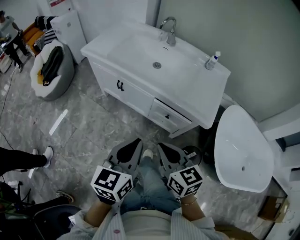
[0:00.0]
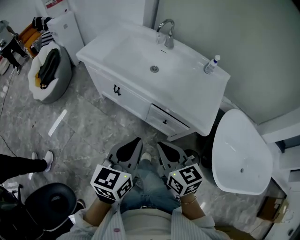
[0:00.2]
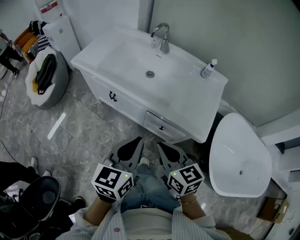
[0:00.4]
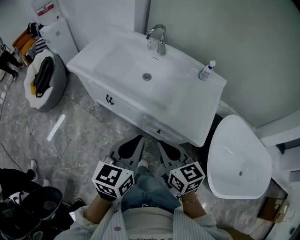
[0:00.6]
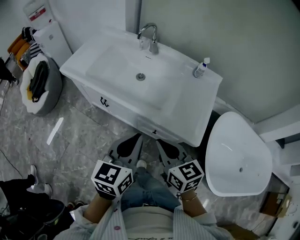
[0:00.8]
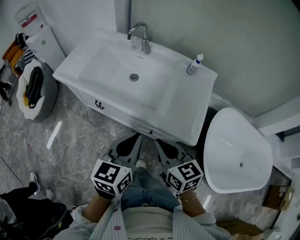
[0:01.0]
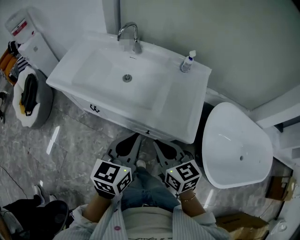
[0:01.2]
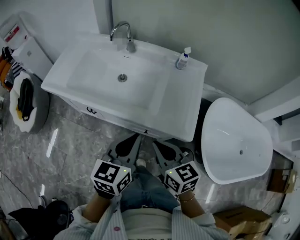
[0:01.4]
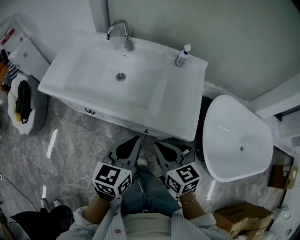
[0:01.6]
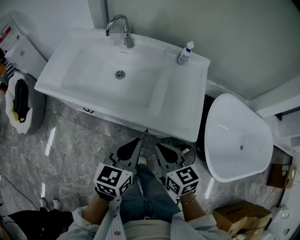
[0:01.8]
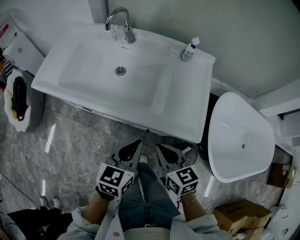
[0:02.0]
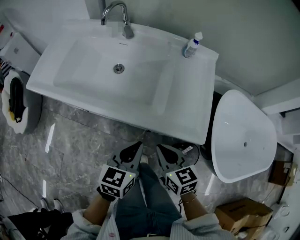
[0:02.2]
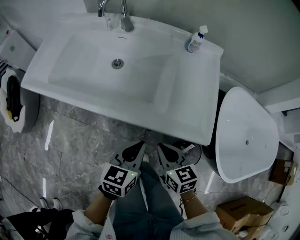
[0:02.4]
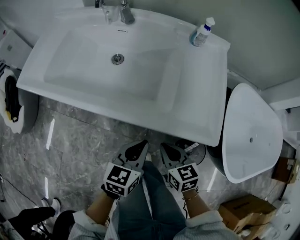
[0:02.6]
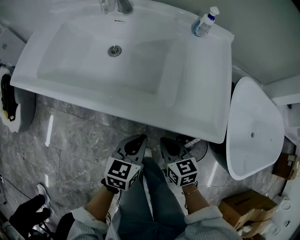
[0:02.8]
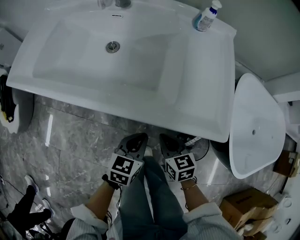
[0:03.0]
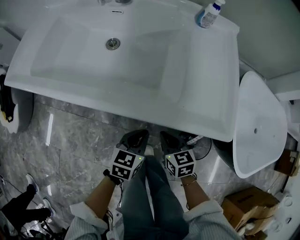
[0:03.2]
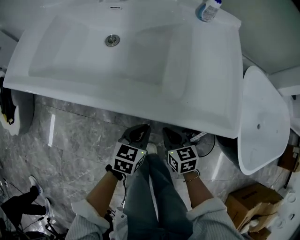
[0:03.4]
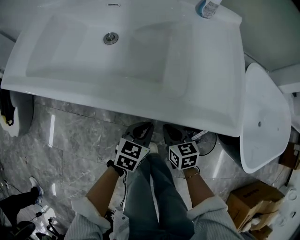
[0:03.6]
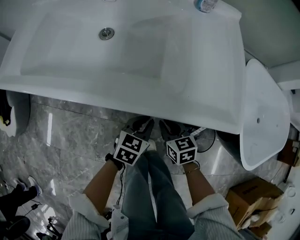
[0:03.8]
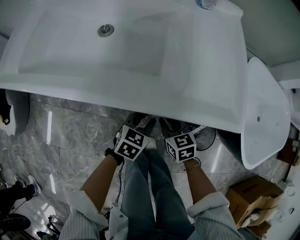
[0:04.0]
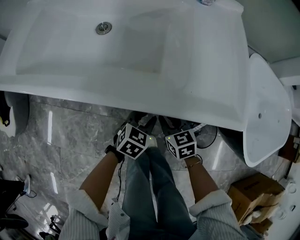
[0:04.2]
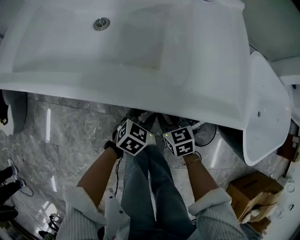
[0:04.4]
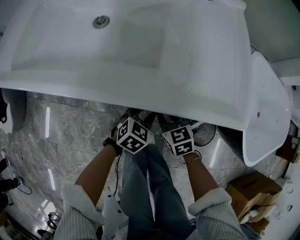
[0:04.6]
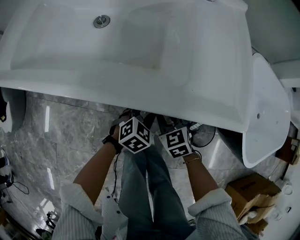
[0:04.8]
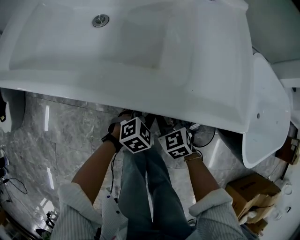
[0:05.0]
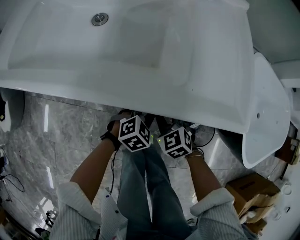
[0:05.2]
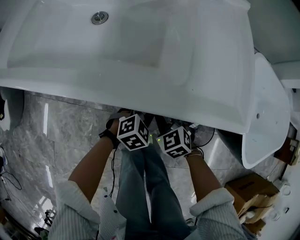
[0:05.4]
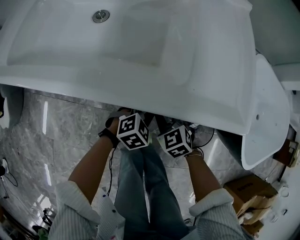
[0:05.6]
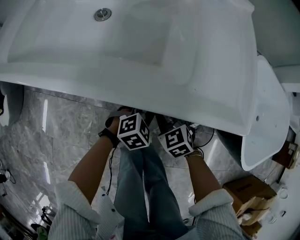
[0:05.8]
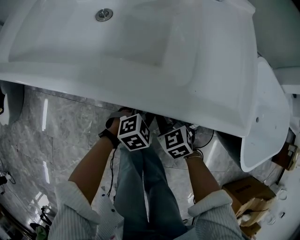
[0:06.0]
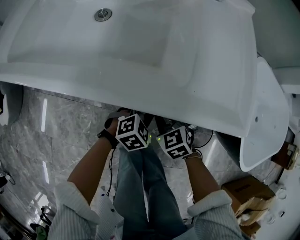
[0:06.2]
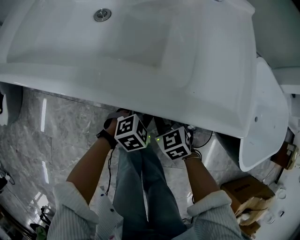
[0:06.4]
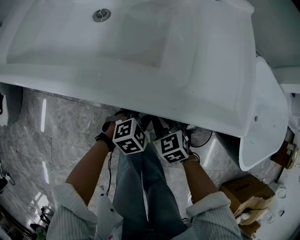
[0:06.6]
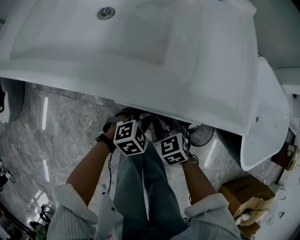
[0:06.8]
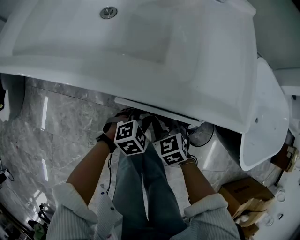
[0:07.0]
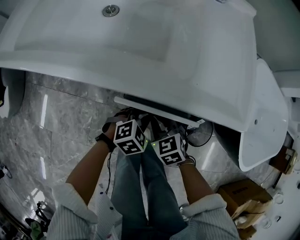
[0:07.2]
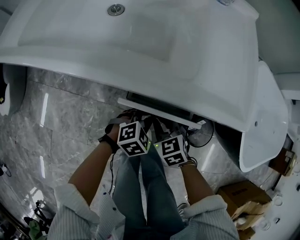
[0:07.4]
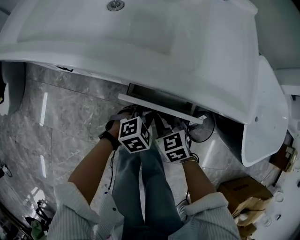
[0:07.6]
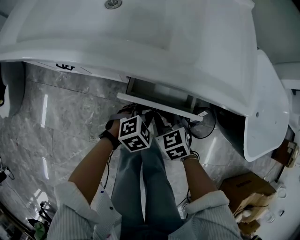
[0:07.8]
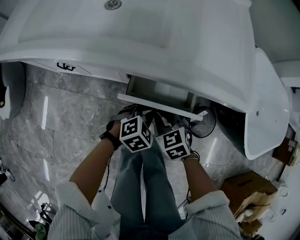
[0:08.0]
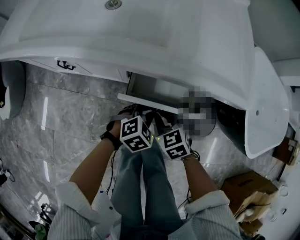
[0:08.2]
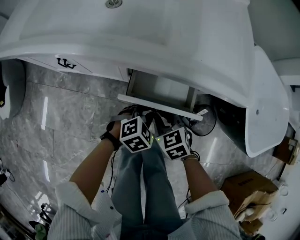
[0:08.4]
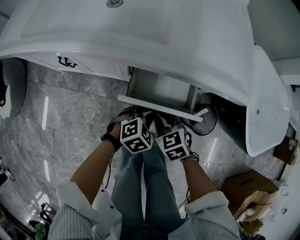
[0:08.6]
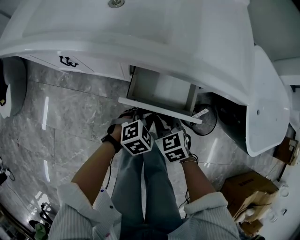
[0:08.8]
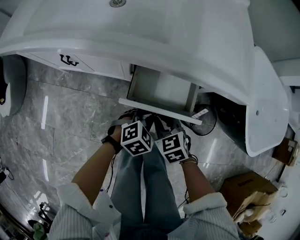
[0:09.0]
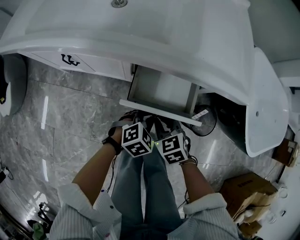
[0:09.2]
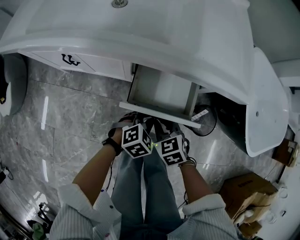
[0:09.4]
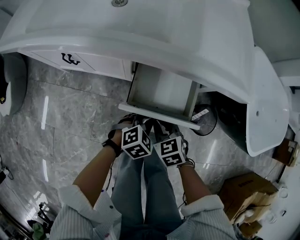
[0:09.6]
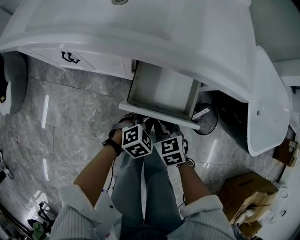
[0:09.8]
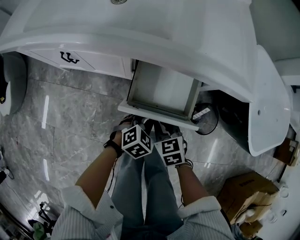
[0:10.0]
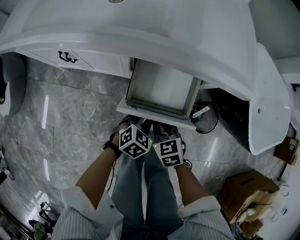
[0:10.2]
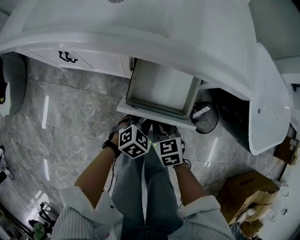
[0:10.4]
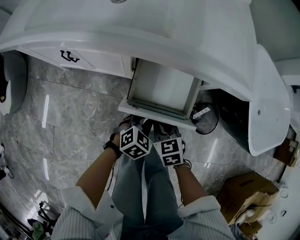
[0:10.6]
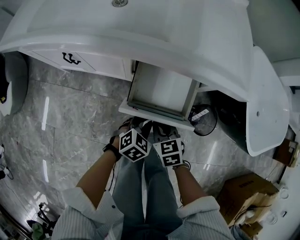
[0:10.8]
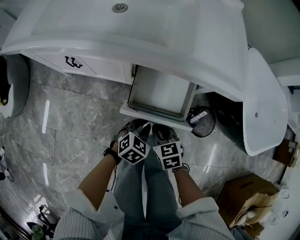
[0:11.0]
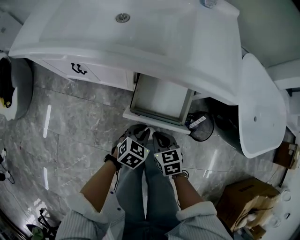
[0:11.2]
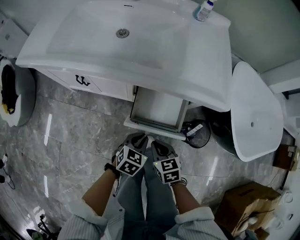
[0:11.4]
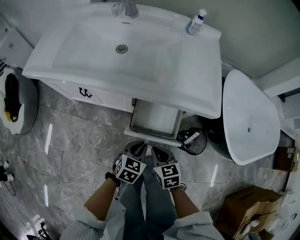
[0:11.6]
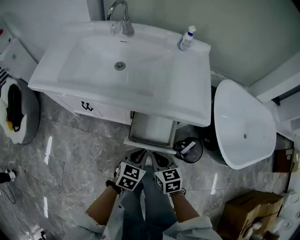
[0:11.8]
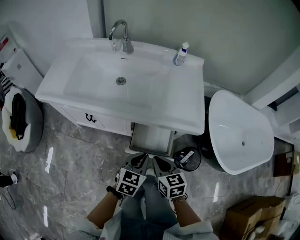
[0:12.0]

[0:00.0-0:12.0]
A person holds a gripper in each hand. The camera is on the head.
0:00.0 to 0:01.6: Both grippers travel together forward and to the right, roughly 20 cm.
0:01.6 to 0:03.0: Both grippers move downward, about 30 cm.
0:03.0 to 0:04.4: Both grippers move downward, about 10 cm. The left gripper changes its angle by about 30 degrees, and opens its fingers.
0:04.4 to 0:06.0: The right gripper rotates about 20 degrees. Meanwhile the left gripper changes its angle by about 20 degrees.
0:06.0 to 0:07.6: Both grippers travel together backward, roughly 5 cm.
0:07.6 to 0:09.0: The two grippers go approximately 5 cm backward.
0:09.0 to 0:10.4: The grippers stay close to where they were, moving slightly.
0:10.4 to 0:12.0: Both grippers move upward, about 25 cm. The left gripper swivels approximately 30 degrees.

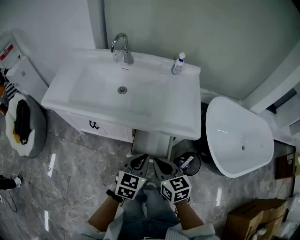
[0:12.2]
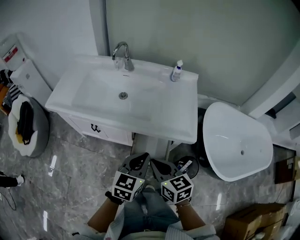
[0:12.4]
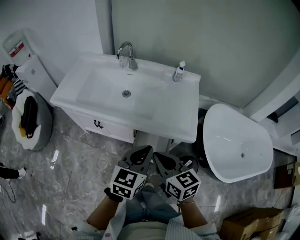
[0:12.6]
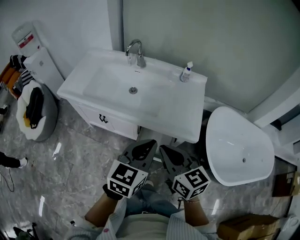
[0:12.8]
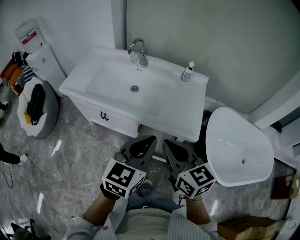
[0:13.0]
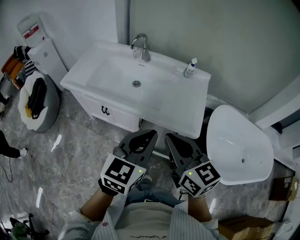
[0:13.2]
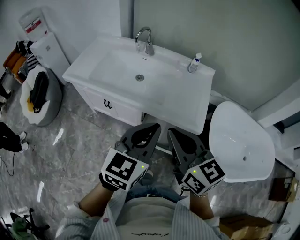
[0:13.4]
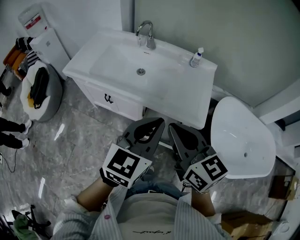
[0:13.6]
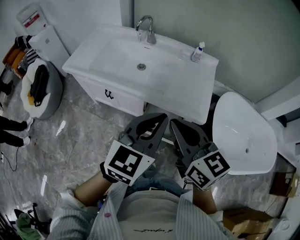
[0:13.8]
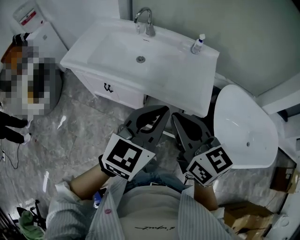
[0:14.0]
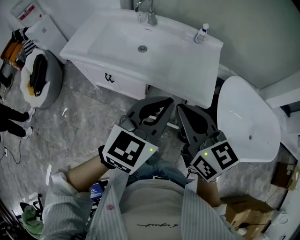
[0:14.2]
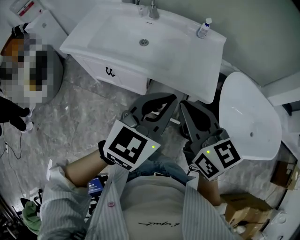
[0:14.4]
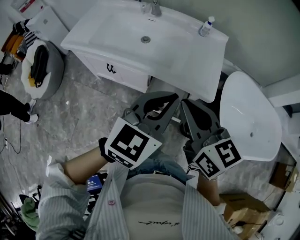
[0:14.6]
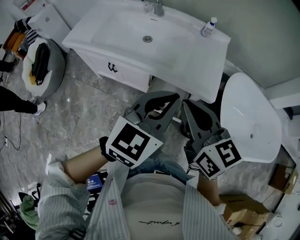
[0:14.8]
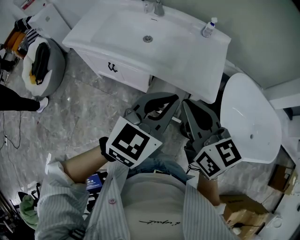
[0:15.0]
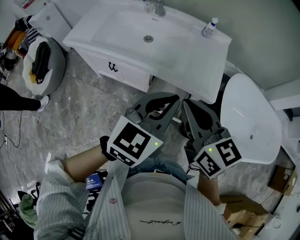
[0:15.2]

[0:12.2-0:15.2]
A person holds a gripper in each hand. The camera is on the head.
0:12.2 to 0:13.8: Both grippers travel together upward, about 25 cm. The right gripper rotates approximately 20 degrees.
0:13.8 to 0:15.2: There are only small adjustments of the grippers.

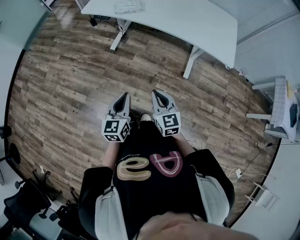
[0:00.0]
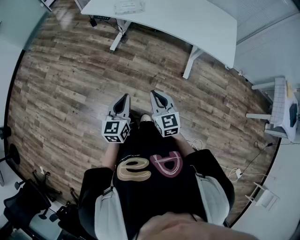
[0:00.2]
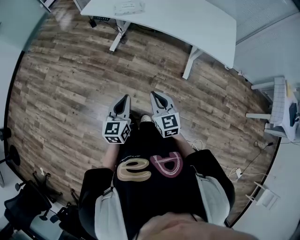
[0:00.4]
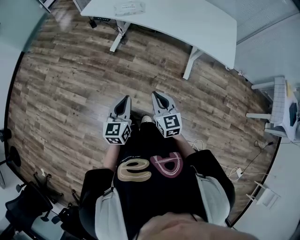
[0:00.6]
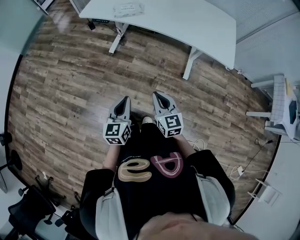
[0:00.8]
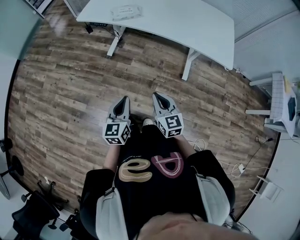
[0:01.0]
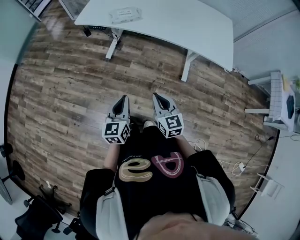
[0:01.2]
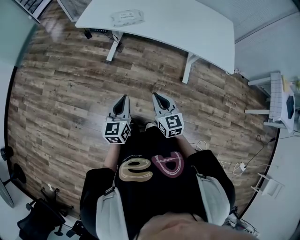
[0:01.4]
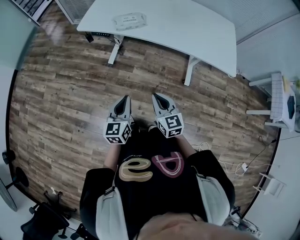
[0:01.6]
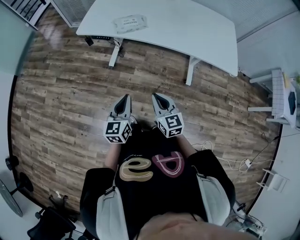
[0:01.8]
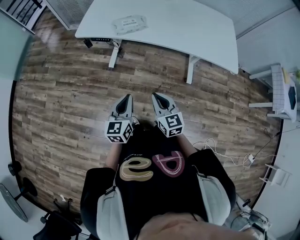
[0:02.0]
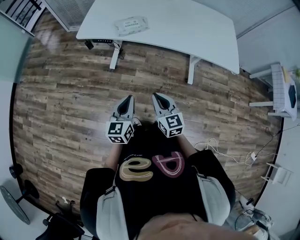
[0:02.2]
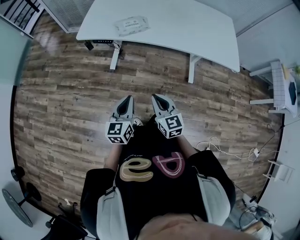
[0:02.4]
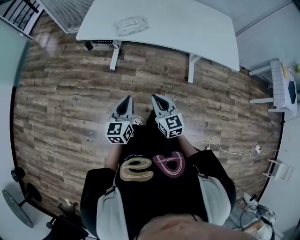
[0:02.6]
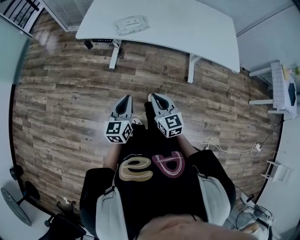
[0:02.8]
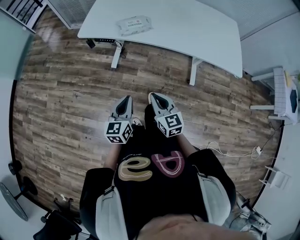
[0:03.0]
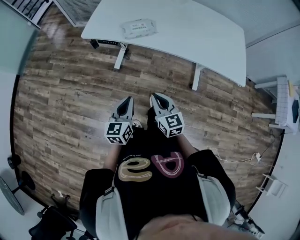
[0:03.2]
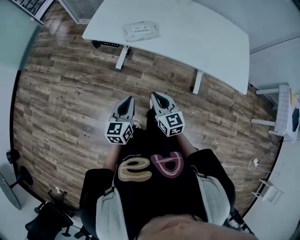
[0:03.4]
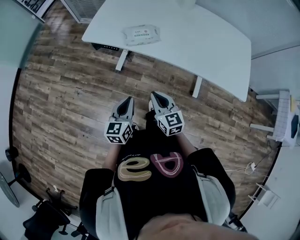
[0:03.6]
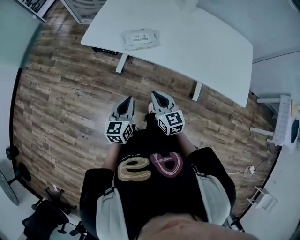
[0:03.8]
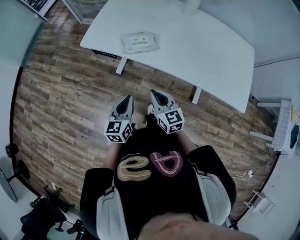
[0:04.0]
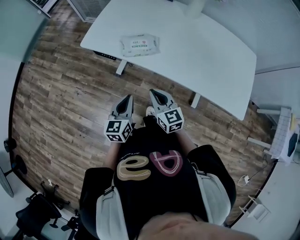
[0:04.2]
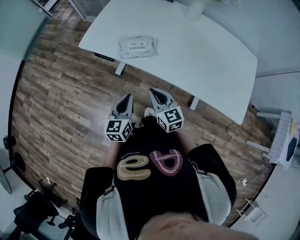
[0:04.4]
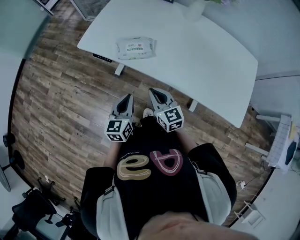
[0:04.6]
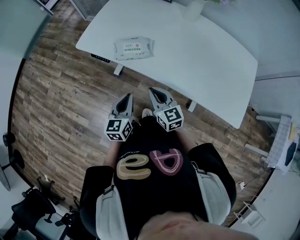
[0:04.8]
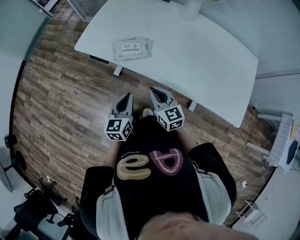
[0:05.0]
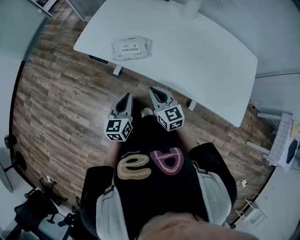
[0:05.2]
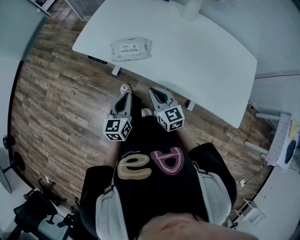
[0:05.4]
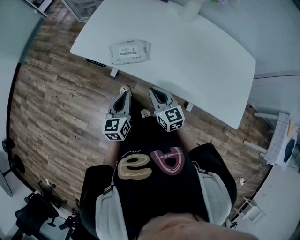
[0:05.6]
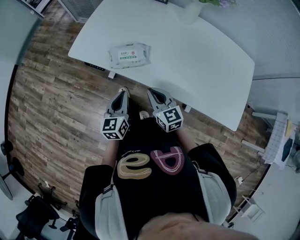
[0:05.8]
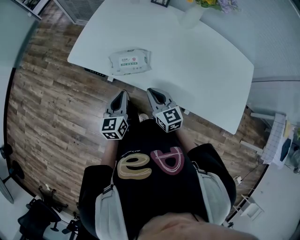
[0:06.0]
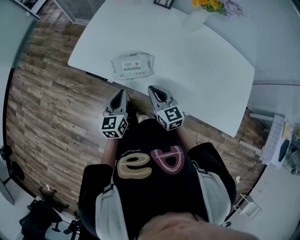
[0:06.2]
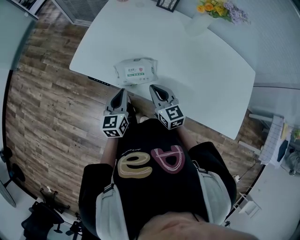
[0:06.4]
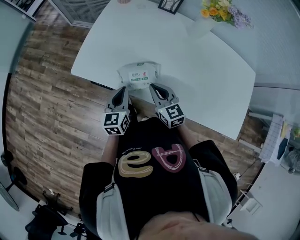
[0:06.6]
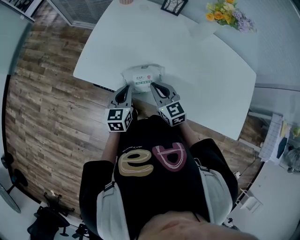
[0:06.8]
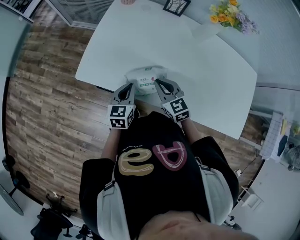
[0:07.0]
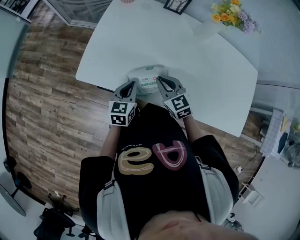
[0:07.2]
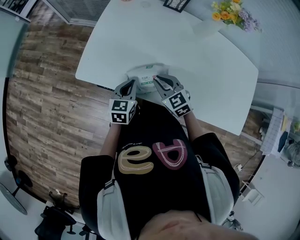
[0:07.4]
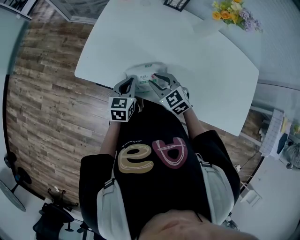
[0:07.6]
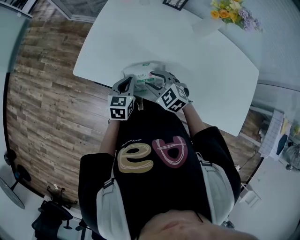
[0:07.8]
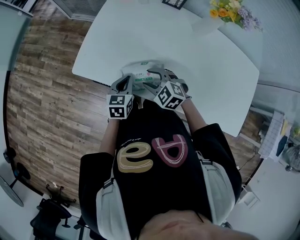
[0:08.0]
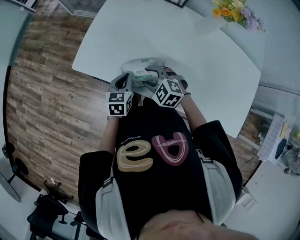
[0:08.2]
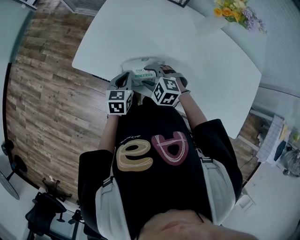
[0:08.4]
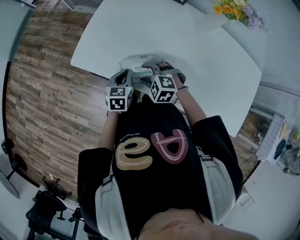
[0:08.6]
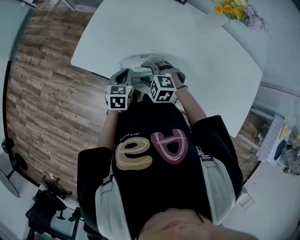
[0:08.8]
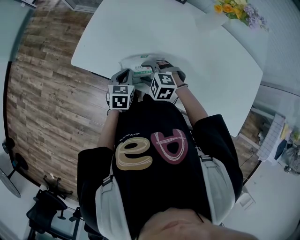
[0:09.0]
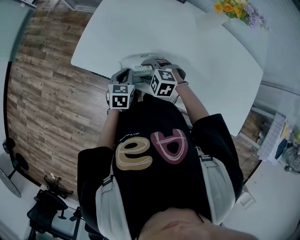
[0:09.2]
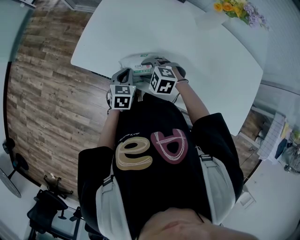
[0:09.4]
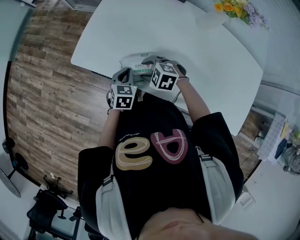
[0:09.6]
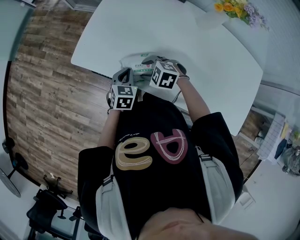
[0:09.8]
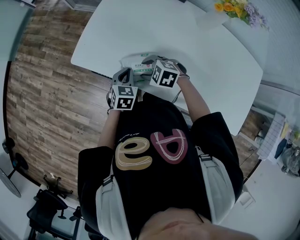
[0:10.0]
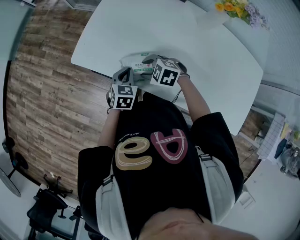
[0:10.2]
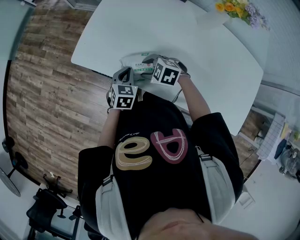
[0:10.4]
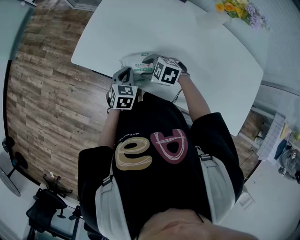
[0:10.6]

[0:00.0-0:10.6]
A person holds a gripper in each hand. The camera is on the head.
0:00.0 to 0:01.6: The grippers both shift forward and to the left by roughly 15 cm.
0:01.6 to 0:03.0: The left gripper is displaced forward and to the left by roughly 10 cm, while the right gripper travels to the left and forward by about 10 cm.
0:03.0 to 0:04.6: Both grippers travel together forward and to the right, roughly 25 cm.
0:04.6 to 0:06.0: Both grippers travel together forward, about 10 cm.
0:06.0 to 0:07.6: The right gripper goes approximately 15 cm forward and to the left, rotates approximately 30 degrees, and opens; the left gripper is displaced forward by some 15 cm.
0:07.6 to 0:09.0: The right gripper changes place by about 5 cm, swivels some 40 degrees, and opens its fingers.
0:09.0 to 0:10.6: The grippers move only a little.
